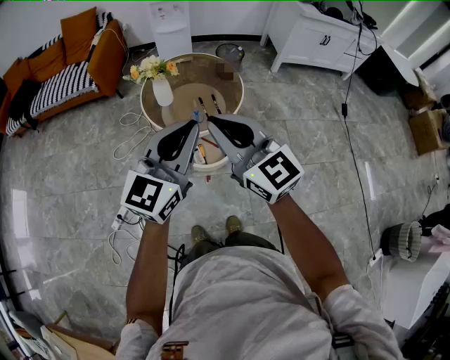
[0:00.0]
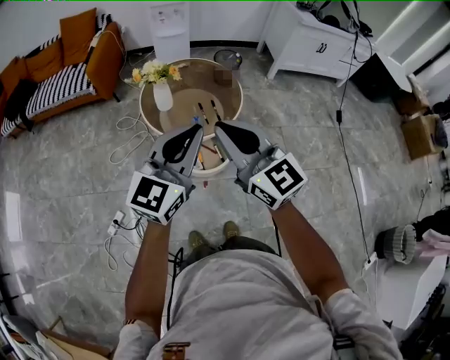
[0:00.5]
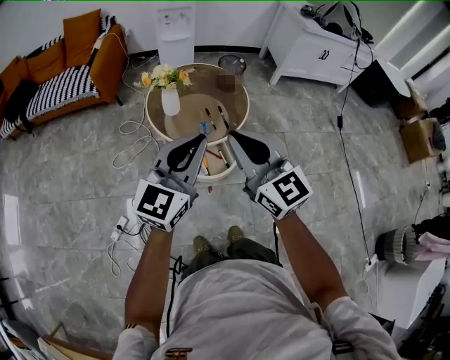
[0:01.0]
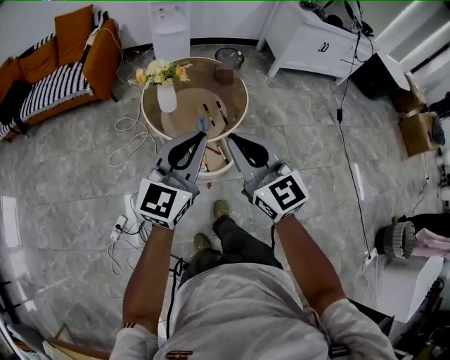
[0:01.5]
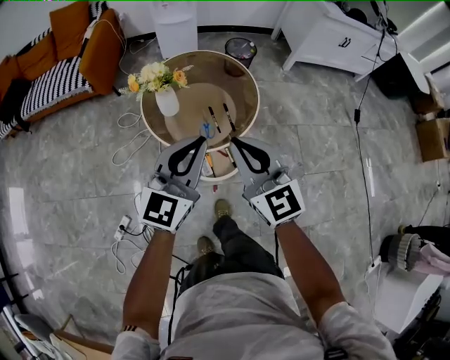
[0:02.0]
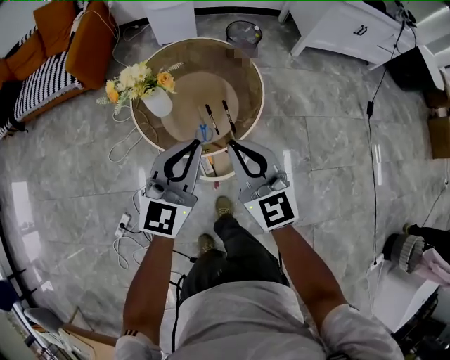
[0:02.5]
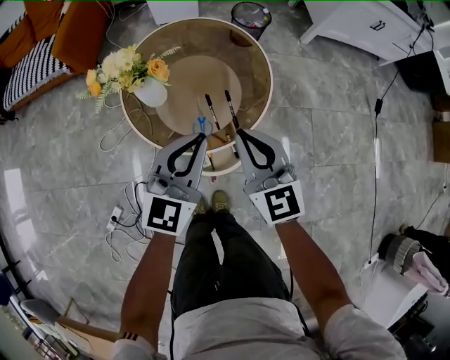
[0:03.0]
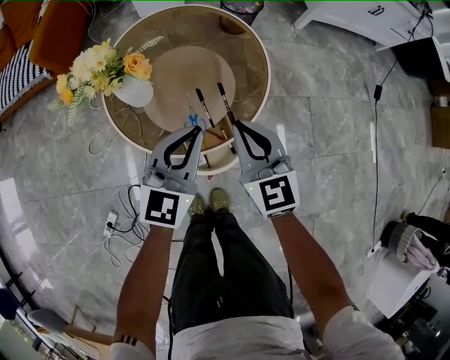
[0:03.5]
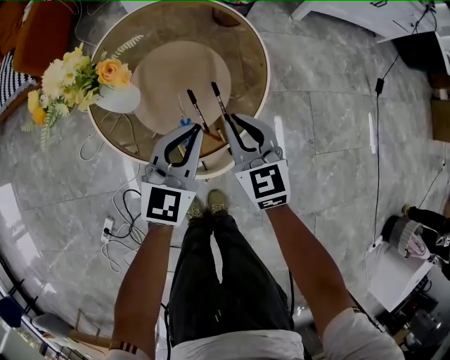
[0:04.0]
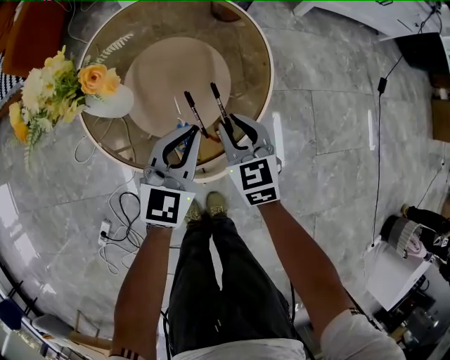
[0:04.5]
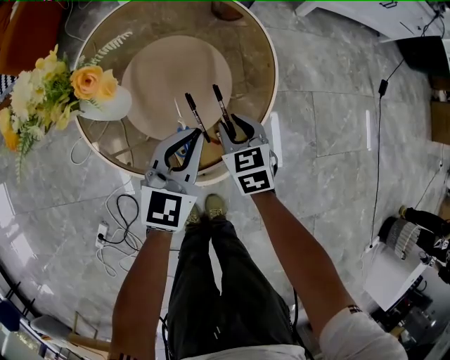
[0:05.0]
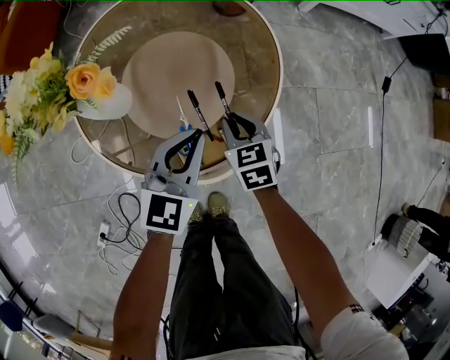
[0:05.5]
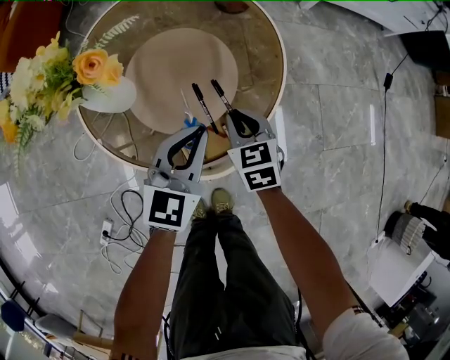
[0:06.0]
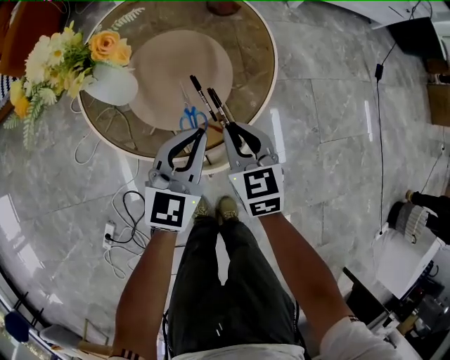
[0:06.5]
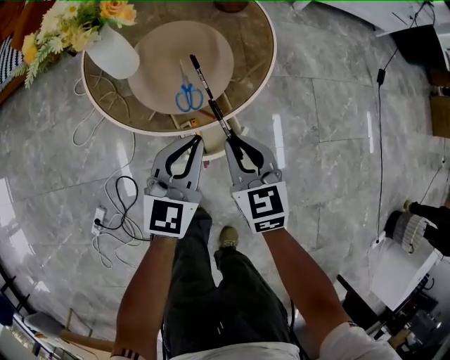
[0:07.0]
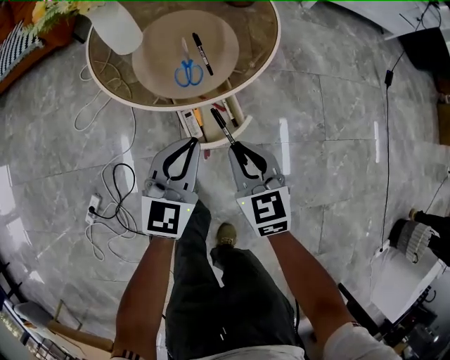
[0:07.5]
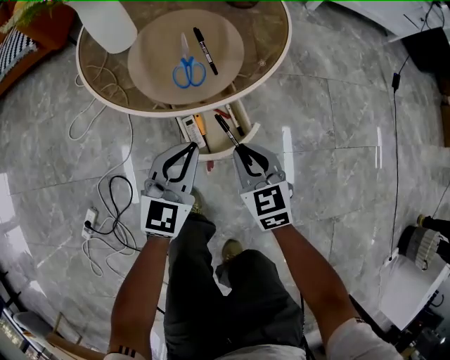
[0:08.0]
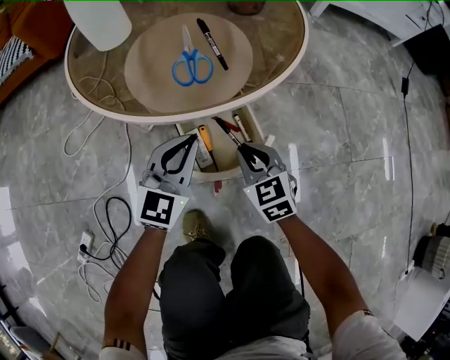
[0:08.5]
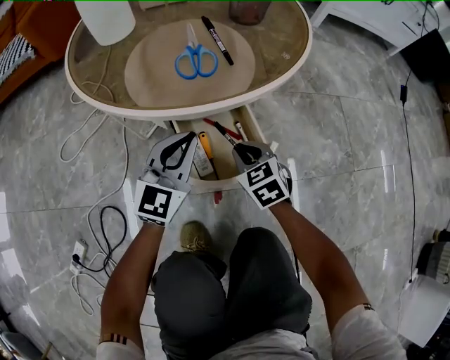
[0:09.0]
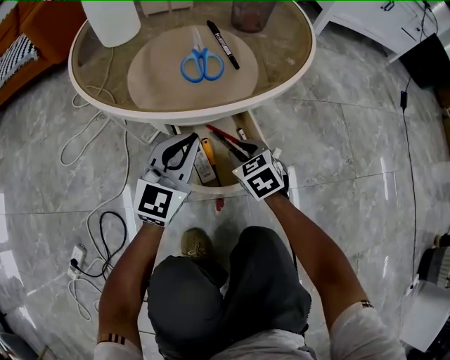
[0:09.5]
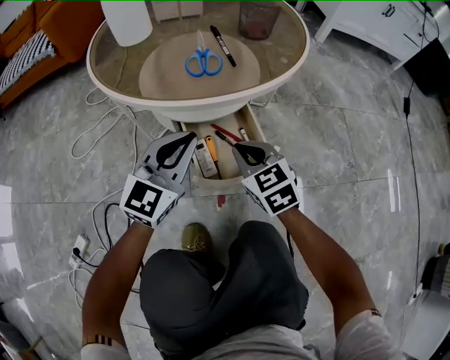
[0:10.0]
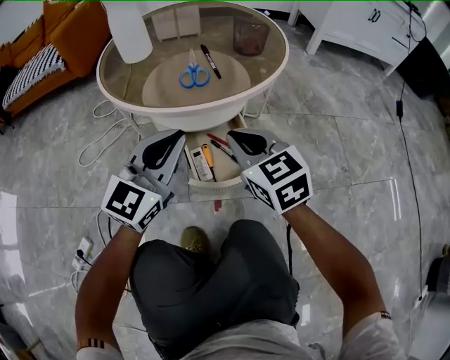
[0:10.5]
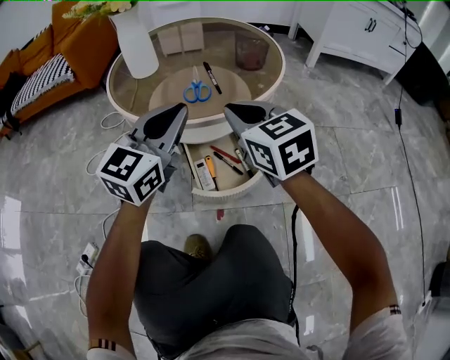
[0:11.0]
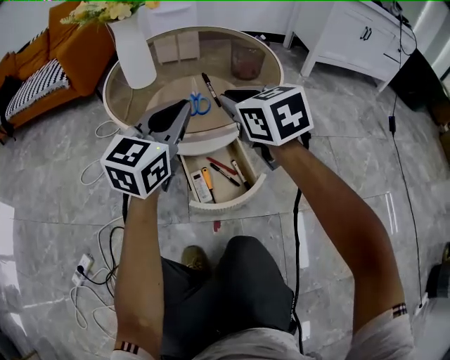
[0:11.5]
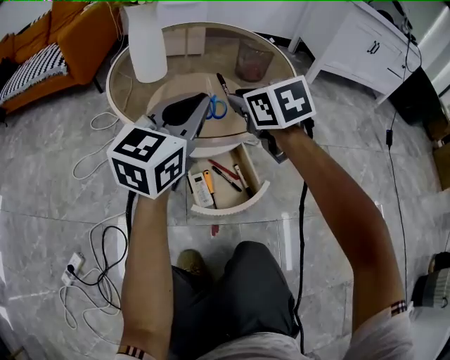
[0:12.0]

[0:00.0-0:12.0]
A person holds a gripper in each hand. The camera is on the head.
0:00.0 to 0:02.0: The two grippers go roughly 20 cm forward and downward.
0:02.0 to 0:04.0: Both grippers move downward and forward, about 40 cm. The right gripper turns by about 20 degrees.
0:04.0 to 0:06.0: The left gripper travels downward by roughly 5 cm. Meanwhile the right gripper shifts approximately 15 cm downward, and rotates approximately 20 degrees.
0:06.0 to 0:08.0: The right gripper moves backward, roughly 20 cm. Meanwhile the left gripper goes approximately 20 cm backward and downward.
0:08.0 to 0:10.0: The right gripper heads downward, covering approximately 10 cm, while the left gripper goes roughly 10 cm downward.
0:10.0 to 0:12.0: Both grippers travel together upward and forward, some 20 cm.

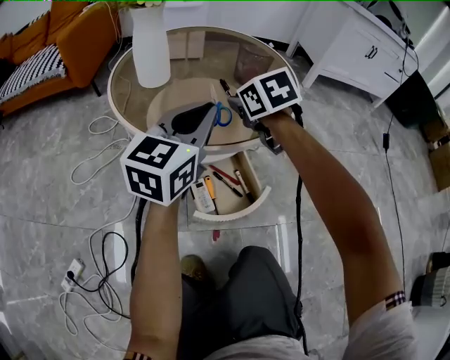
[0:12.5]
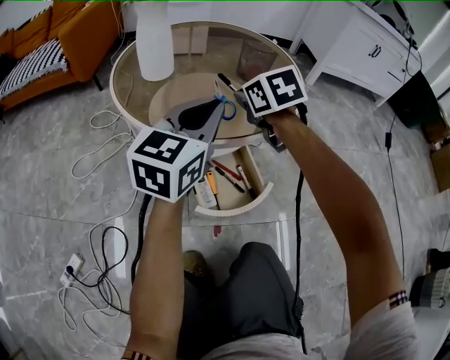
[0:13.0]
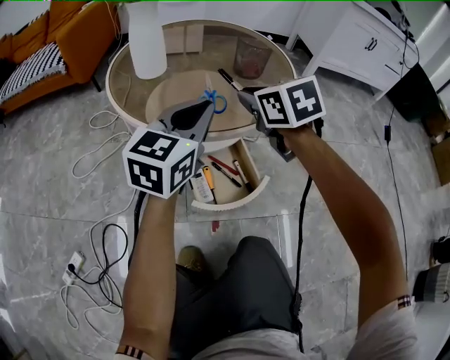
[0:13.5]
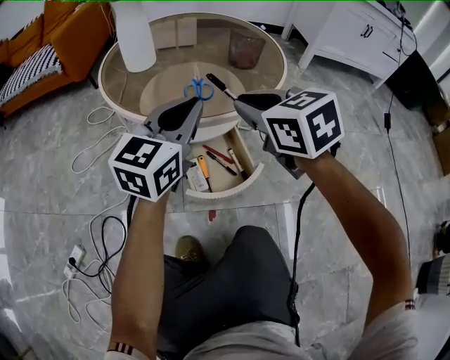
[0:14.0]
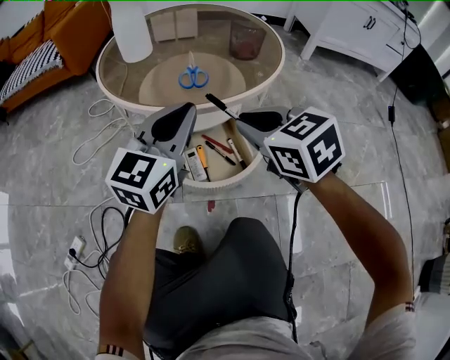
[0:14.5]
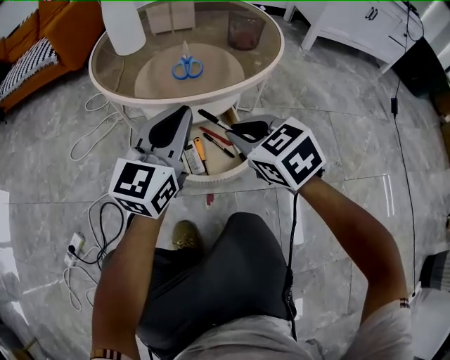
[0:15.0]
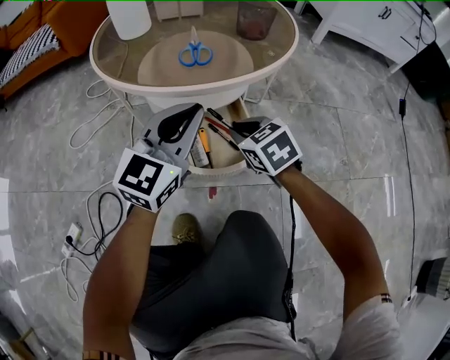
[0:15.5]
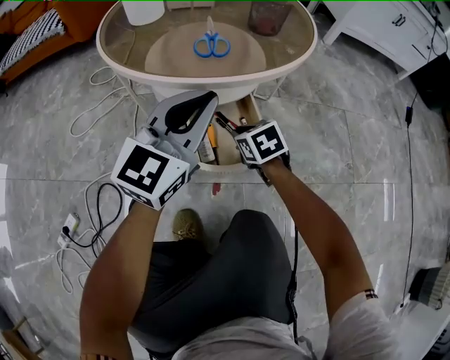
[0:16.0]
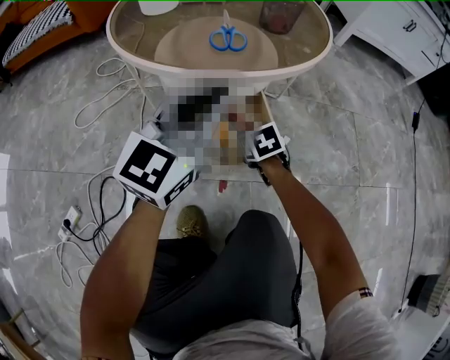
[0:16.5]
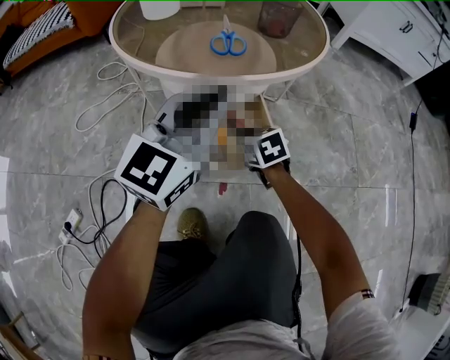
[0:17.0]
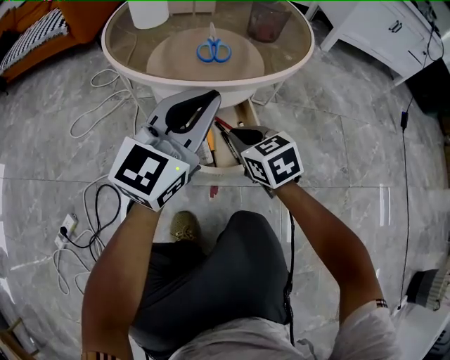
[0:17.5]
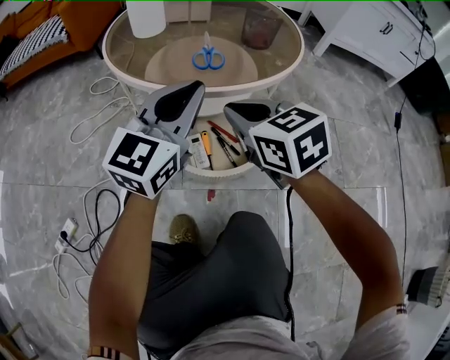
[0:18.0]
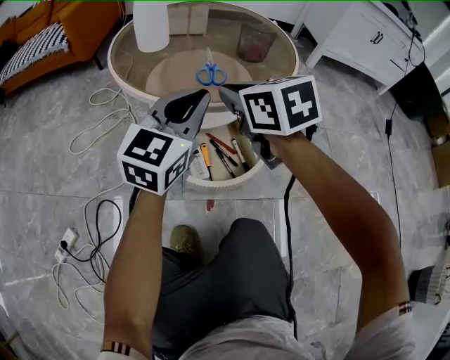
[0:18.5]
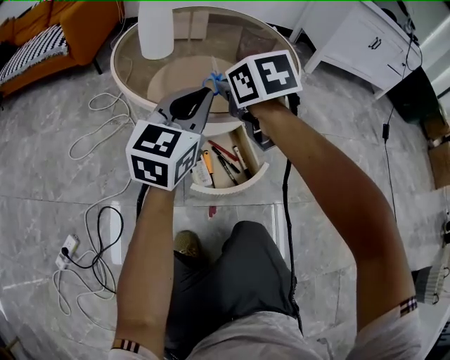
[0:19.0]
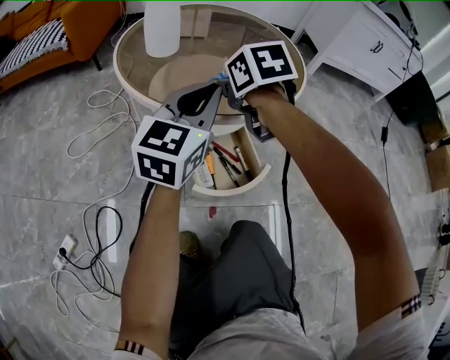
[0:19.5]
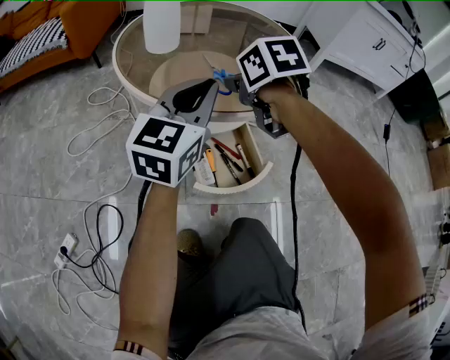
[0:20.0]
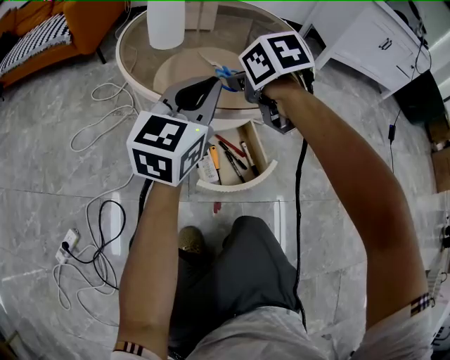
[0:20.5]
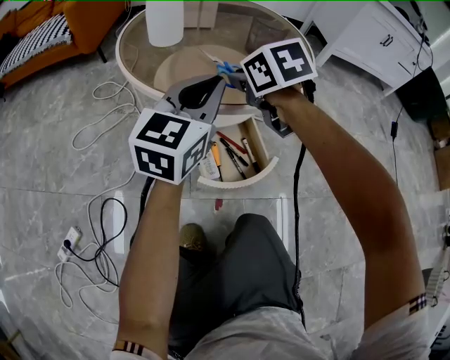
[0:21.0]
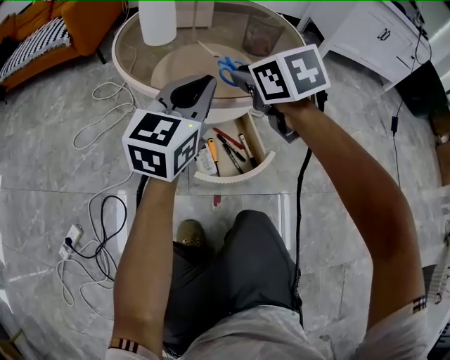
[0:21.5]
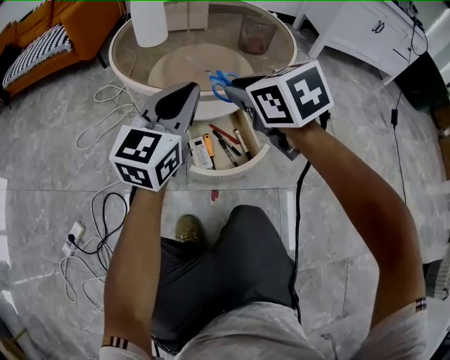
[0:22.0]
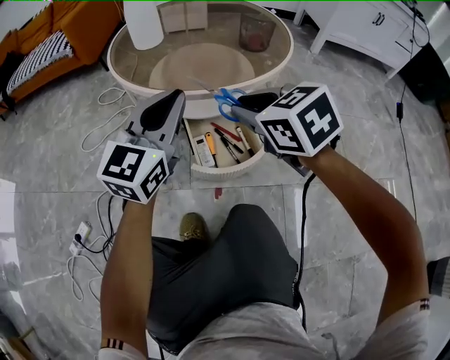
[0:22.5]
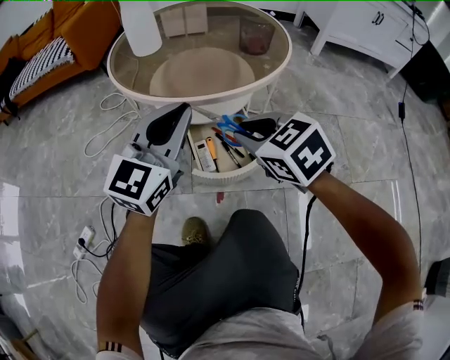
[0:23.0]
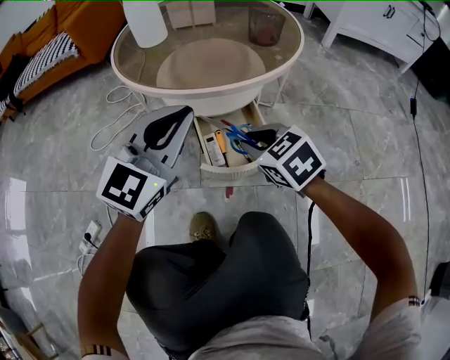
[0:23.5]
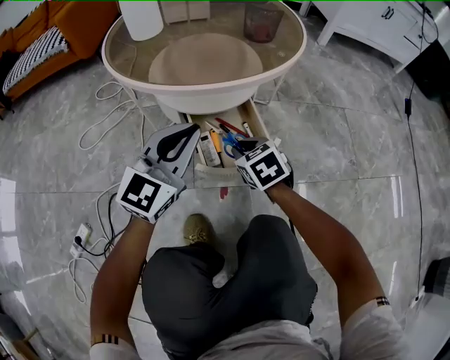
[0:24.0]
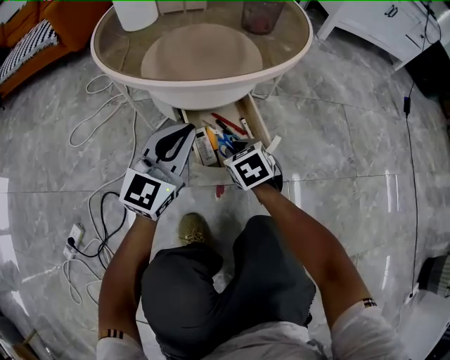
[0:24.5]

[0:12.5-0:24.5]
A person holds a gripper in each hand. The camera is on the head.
0:12.5 to 0:14.5: The right gripper heads backward, covering roughly 20 cm. Meanwhile the left gripper goes some 10 cm backward.
0:14.5 to 0:16.5: The right gripper travels downward by approximately 30 cm, and swivels roughly 30 degrees.
0:16.5 to 0:18.5: The left gripper moves about 5 cm. The right gripper is displaced upward by about 30 cm, and turns by about 30 degrees.
0:18.5 to 0:20.5: The right gripper moves forward, about 10 cm, while the left gripper ends up about 5 cm from where it was.
0:20.5 to 0:22.5: The left gripper travels backward by approximately 10 cm. Meanwhile the right gripper moves backward, approximately 15 cm, and rotates roughly 20 degrees.
0:22.5 to 0:24.5: The right gripper travels downward by some 30 cm, and rotates roughly 20 degrees. The left gripper travels downward by roughly 15 cm.

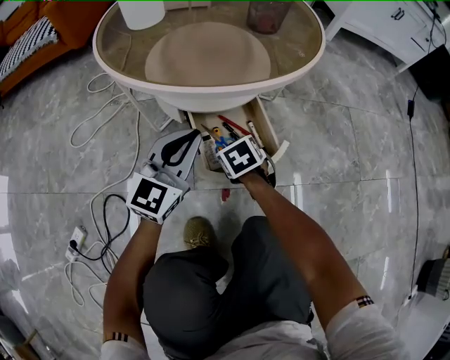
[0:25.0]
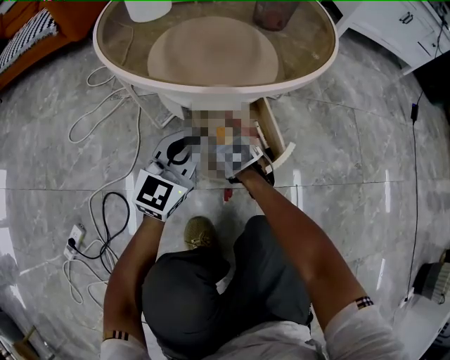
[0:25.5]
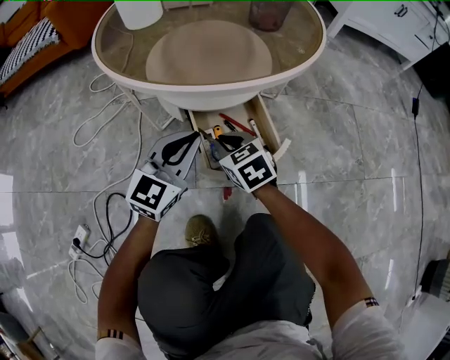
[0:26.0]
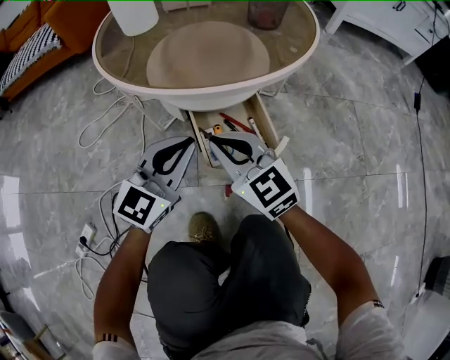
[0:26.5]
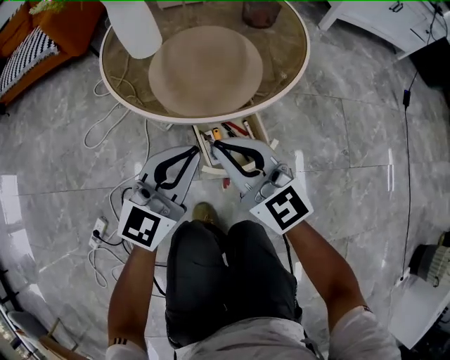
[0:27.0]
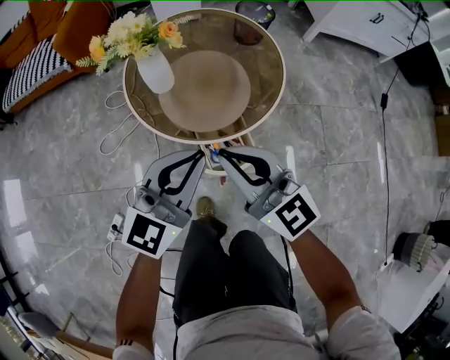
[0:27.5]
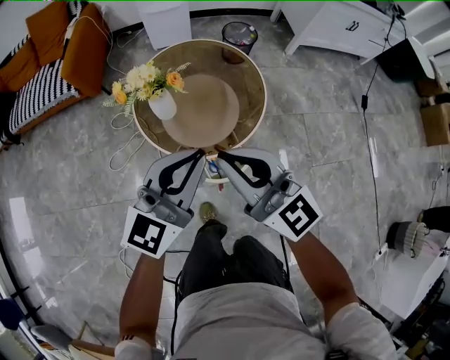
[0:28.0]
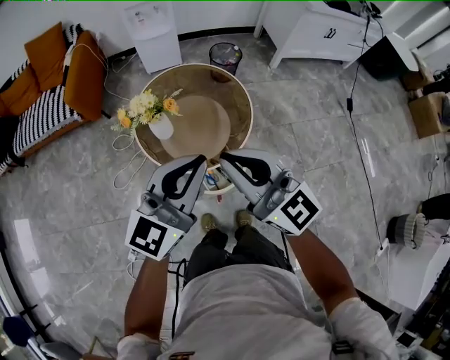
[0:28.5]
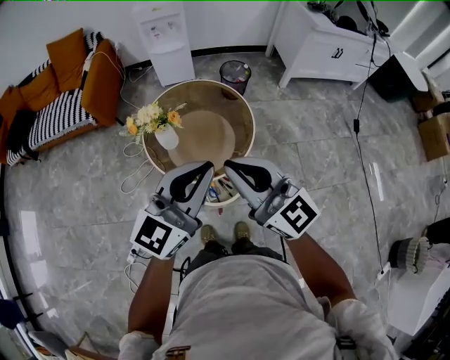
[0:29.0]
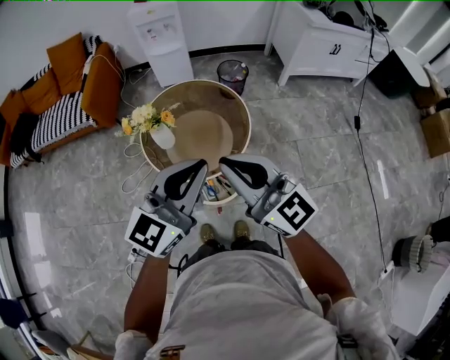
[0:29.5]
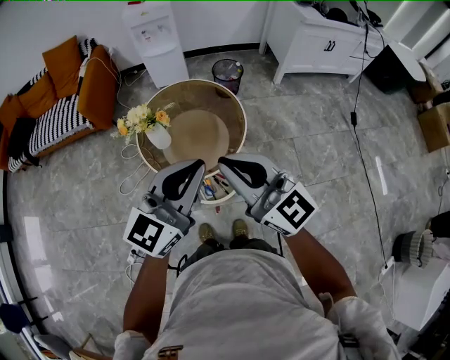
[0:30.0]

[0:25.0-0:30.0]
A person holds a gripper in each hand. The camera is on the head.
0:25.0 to 0:27.5: The left gripper heads upward, covering some 40 cm. Meanwhile the right gripper shifts about 60 cm upward, and angles its fingers upward, by about 60 degrees.
0:27.5 to 0:30.0: Both grippers travel together upward, roughly 30 cm.
